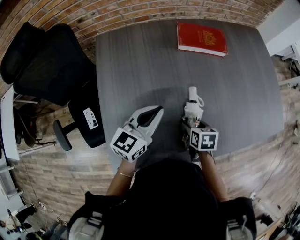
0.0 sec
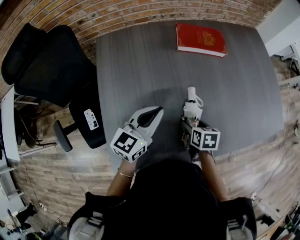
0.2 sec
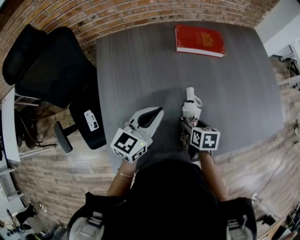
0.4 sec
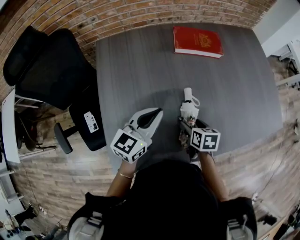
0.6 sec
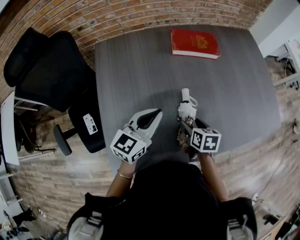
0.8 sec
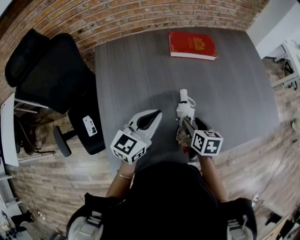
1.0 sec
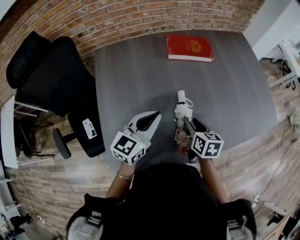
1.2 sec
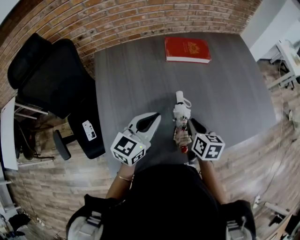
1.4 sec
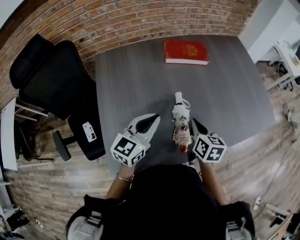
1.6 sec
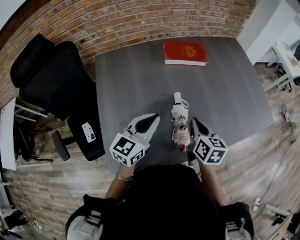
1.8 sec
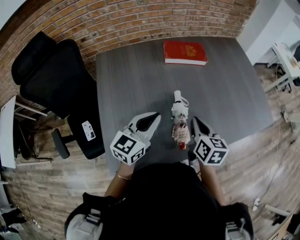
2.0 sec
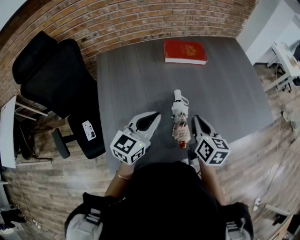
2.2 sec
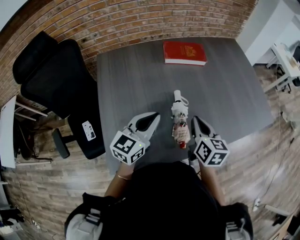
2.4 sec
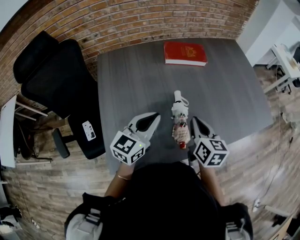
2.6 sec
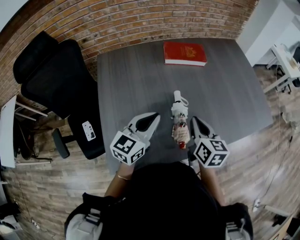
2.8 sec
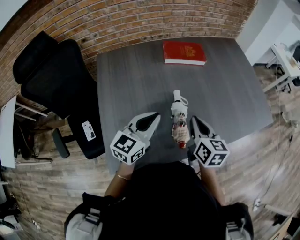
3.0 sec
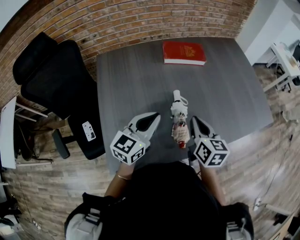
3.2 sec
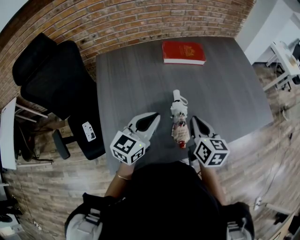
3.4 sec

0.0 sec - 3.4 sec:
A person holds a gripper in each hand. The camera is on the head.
0.0 sec - 1.6 sec: The right gripper shifts roughly 15 cm upward, rotates some 30 degrees, and closes its fingers. The left gripper moves about 5 cm.
1.6 sec - 3.4 sec: The right gripper heads upward, covering about 5 cm.

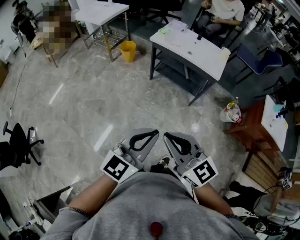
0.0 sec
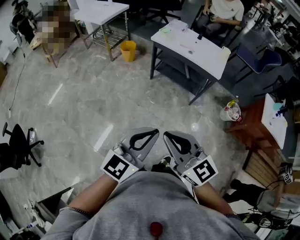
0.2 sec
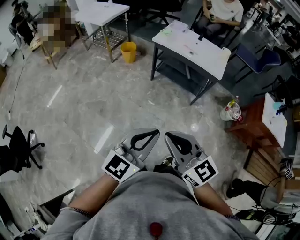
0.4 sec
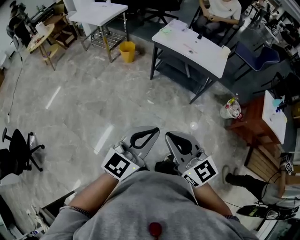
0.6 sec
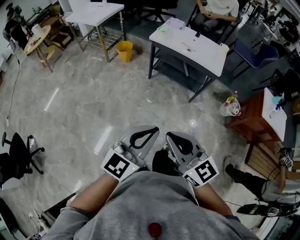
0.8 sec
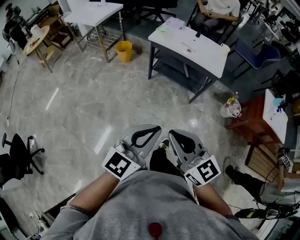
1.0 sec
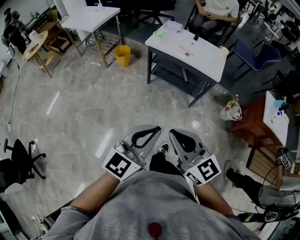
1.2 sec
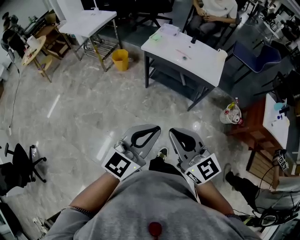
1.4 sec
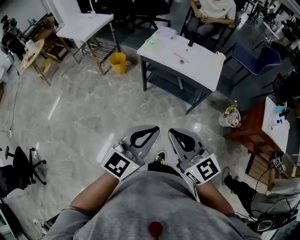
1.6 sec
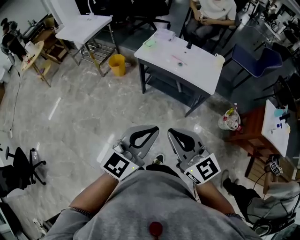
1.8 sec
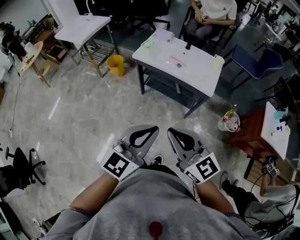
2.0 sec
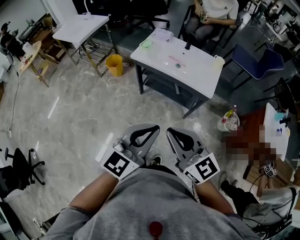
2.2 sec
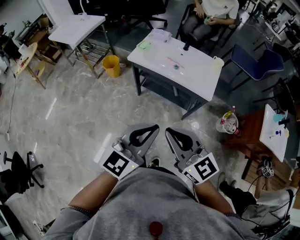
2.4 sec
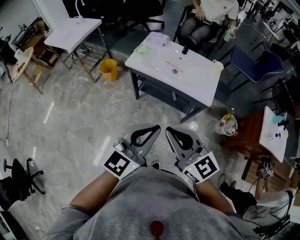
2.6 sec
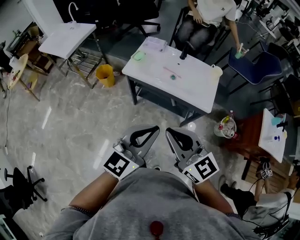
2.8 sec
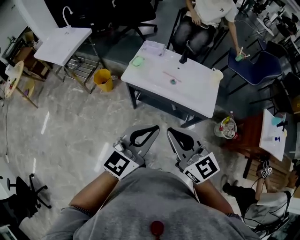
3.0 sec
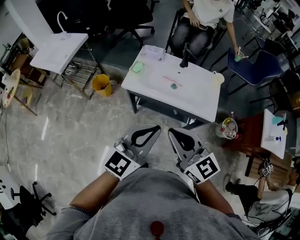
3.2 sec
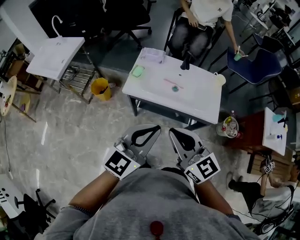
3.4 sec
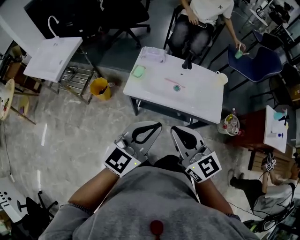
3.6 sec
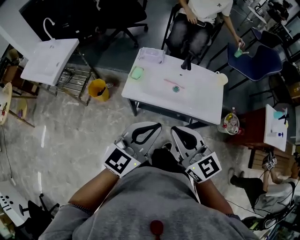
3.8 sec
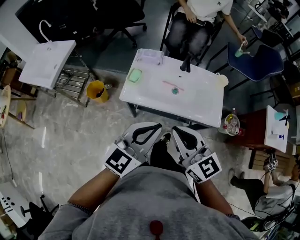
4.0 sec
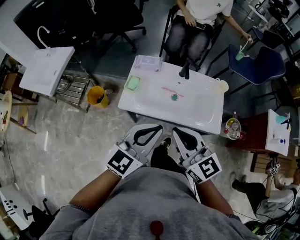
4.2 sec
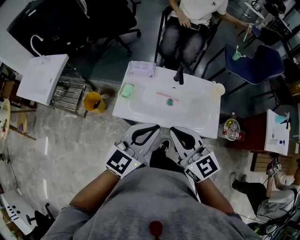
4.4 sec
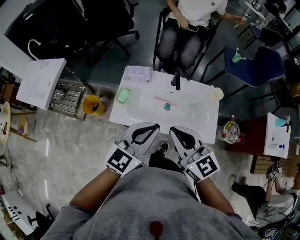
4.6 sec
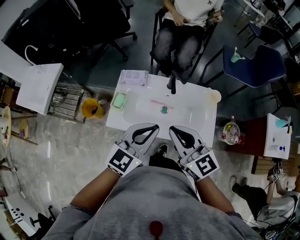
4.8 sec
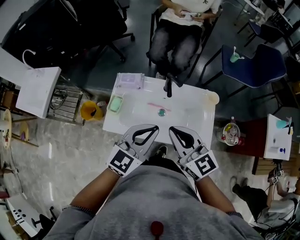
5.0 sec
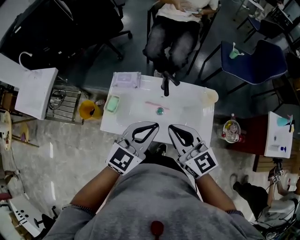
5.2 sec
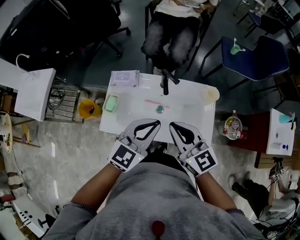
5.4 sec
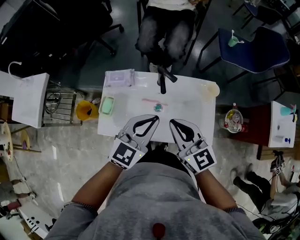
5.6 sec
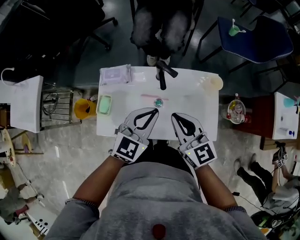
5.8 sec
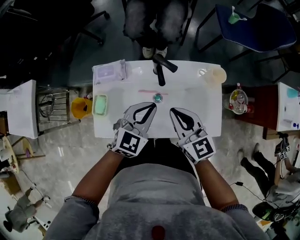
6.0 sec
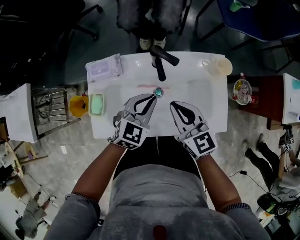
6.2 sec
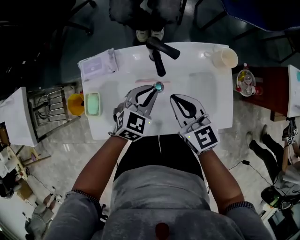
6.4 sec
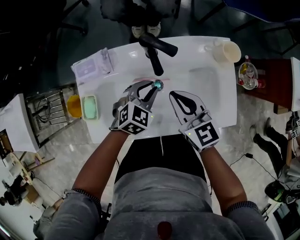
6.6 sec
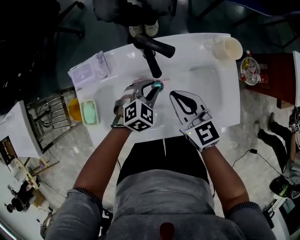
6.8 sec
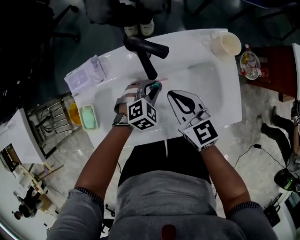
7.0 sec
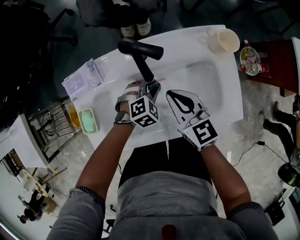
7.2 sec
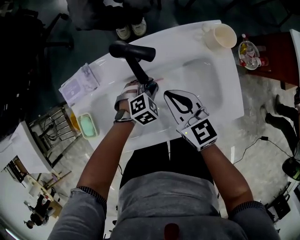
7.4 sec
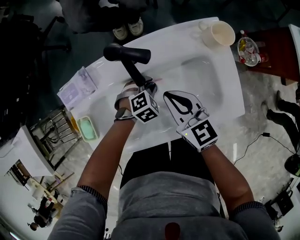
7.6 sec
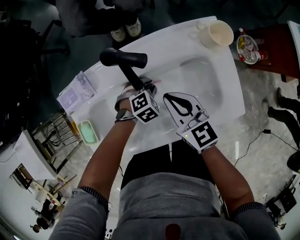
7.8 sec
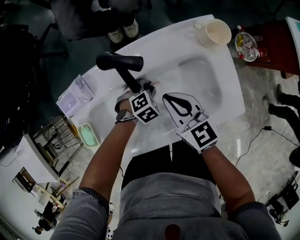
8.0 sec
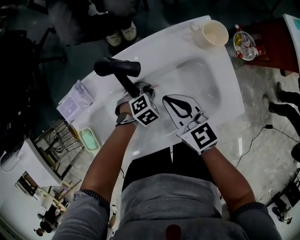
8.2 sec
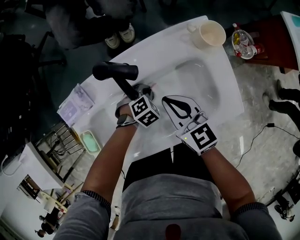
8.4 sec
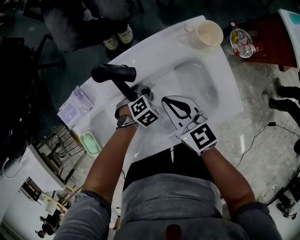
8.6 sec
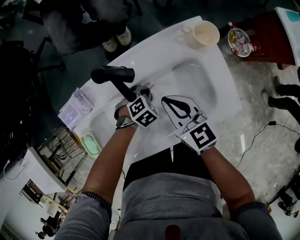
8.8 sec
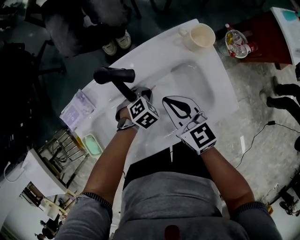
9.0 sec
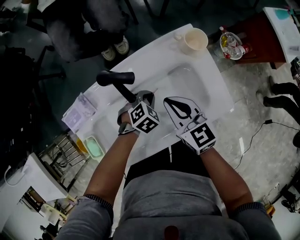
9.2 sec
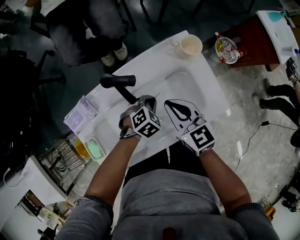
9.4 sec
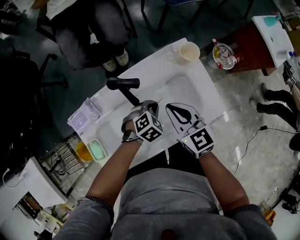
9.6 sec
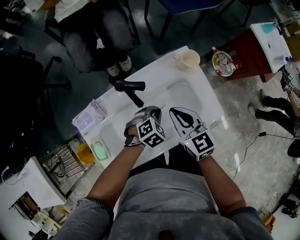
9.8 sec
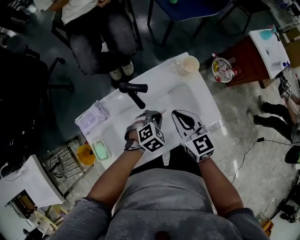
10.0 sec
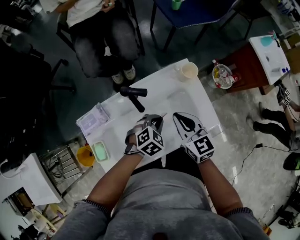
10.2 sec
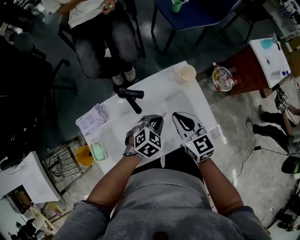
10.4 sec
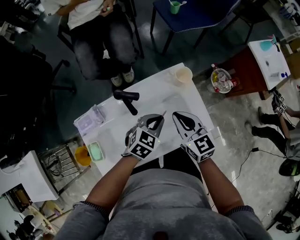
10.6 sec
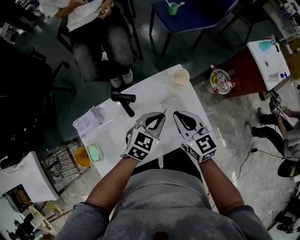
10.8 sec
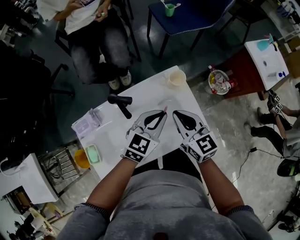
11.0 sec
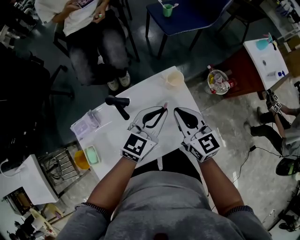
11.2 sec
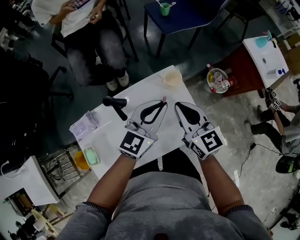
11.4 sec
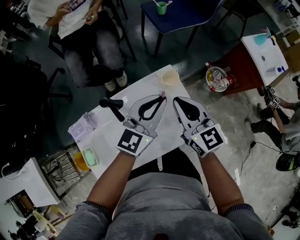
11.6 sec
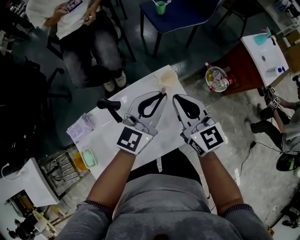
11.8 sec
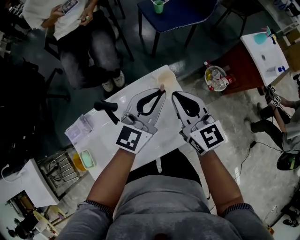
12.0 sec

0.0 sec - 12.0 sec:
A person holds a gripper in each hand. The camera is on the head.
0.0 sec - 1.6 sec: Both grippers move forward, some 15 cm.
1.6 sec - 3.0 sec: The two grippers go about 30 cm forward.
3.0 sec - 4.4 sec: The two grippers go approximately 25 cm forward.
4.4 sec - 6.0 sec: The grippers both shift forward, downward and to the right by about 30 cm. The left gripper rotates some 30 degrees.
6.0 sec - 7.6 sec: The right gripper shifts some 15 cm downward; the left gripper moves downward, about 30 cm, tilts its fingers about 40 degrees downward, and opens up.
7.6 sec - 9.0 sec: The left gripper closes up.
9.0 sec - 10.4 sec: The right gripper moves upward, some 10 cm. Meanwhile the left gripper goes about 20 cm upward, and rotates approximately 20 degrees.
10.4 sec - 12.0 sec: The left gripper is displaced upward and forward by some 25 cm, and tips its fingers upward by roughly 50 degrees, while the right gripper shifts approximately 15 cm upward, forward and to the right.

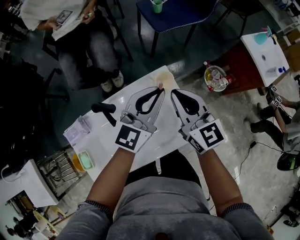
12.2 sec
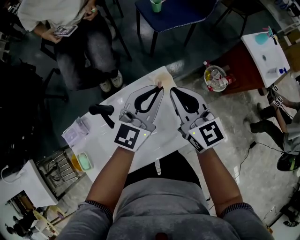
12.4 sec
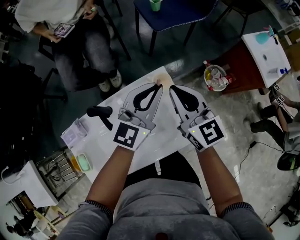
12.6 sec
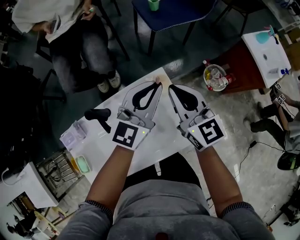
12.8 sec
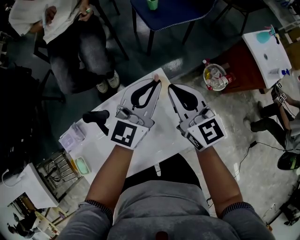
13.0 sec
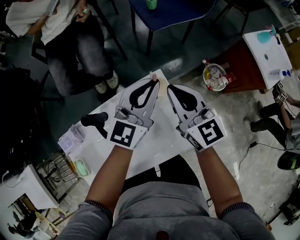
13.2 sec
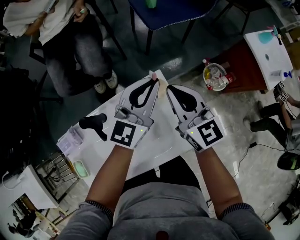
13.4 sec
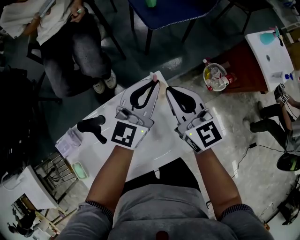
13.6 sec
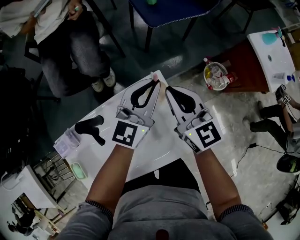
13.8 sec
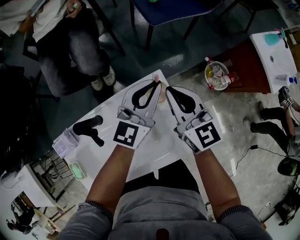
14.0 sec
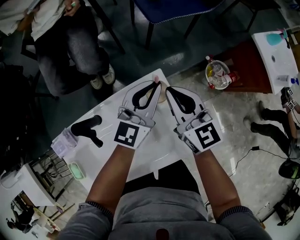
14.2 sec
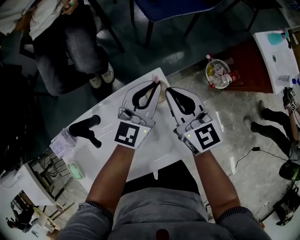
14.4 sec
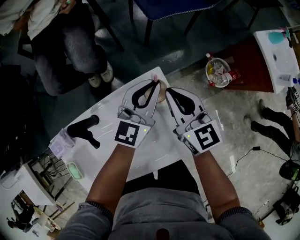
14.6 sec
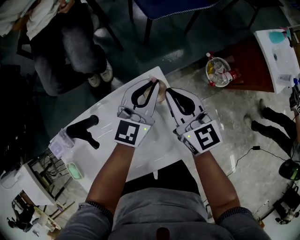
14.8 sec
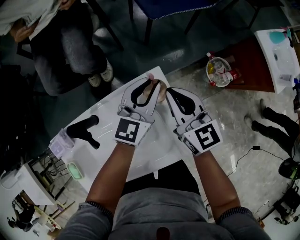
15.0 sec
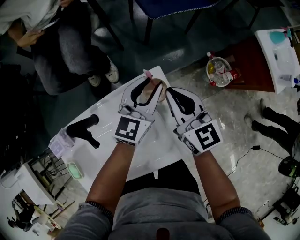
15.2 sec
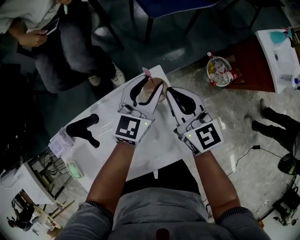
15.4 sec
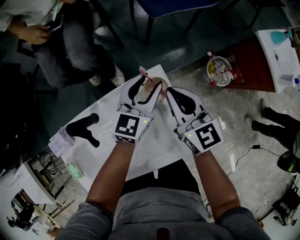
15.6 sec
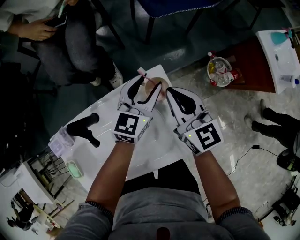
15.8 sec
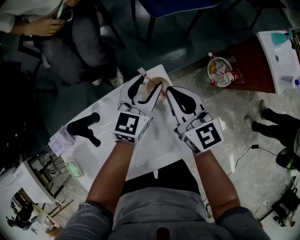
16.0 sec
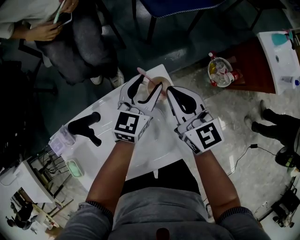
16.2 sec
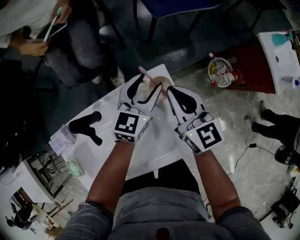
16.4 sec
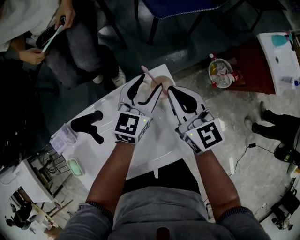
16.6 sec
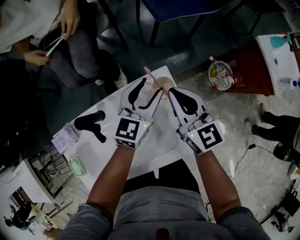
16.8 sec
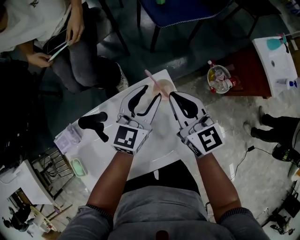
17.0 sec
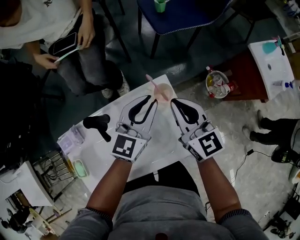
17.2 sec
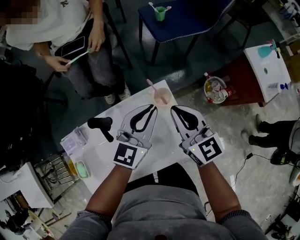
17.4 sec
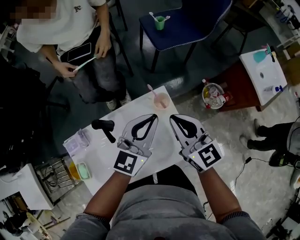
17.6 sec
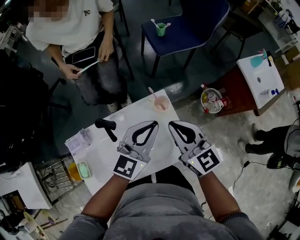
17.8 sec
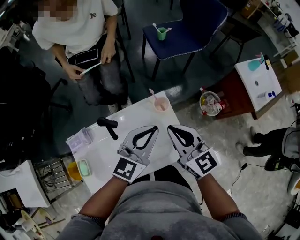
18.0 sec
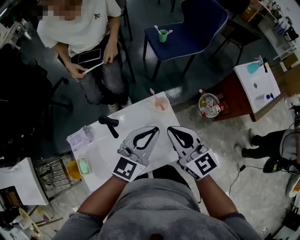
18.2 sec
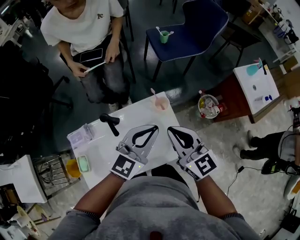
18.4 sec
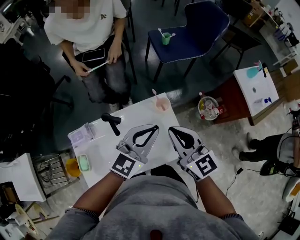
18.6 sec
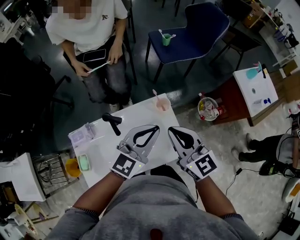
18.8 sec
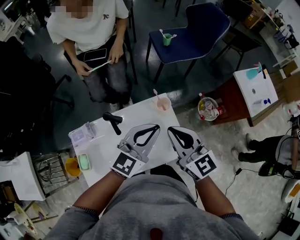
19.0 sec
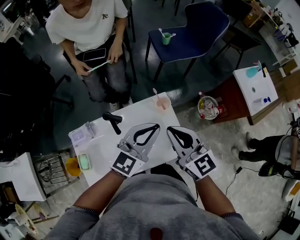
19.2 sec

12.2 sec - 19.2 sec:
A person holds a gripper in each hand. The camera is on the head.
12.2 sec - 13.6 sec: Both grippers move forward, approximately 10 cm.
13.6 sec - 15.0 sec: Both grippers move downward, some 10 cm.
15.0 sec - 16.4 sec: The left gripper opens up.
16.4 sec - 17.8 sec: Both grippers move upward and backward, roughly 20 cm. The left gripper closes up.
17.8 sec - 19.2 sec: The left gripper shifts by some 5 cm, while the right gripper travels upward by some 5 cm.

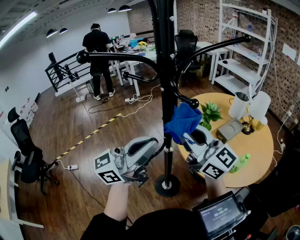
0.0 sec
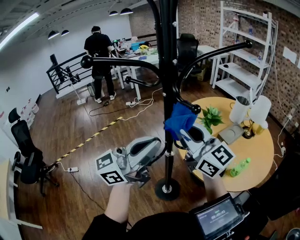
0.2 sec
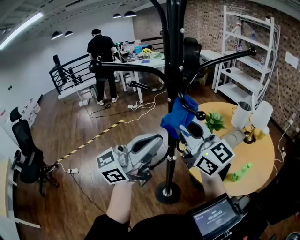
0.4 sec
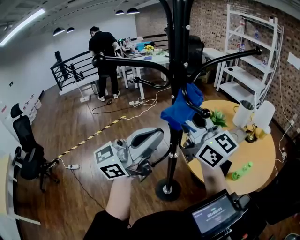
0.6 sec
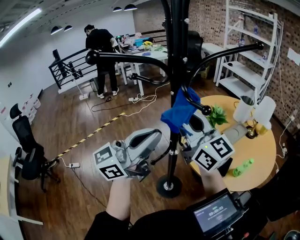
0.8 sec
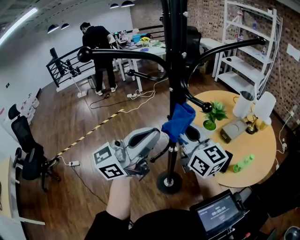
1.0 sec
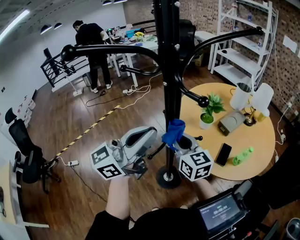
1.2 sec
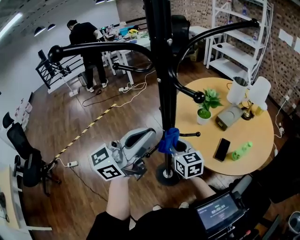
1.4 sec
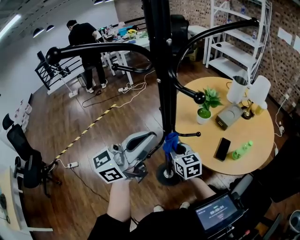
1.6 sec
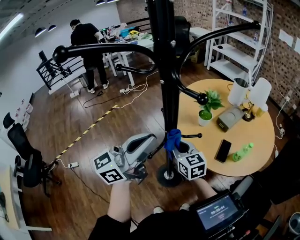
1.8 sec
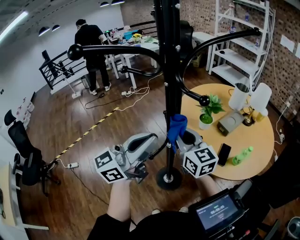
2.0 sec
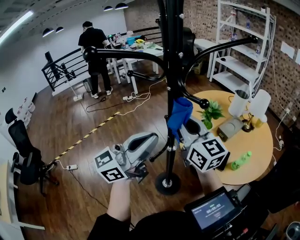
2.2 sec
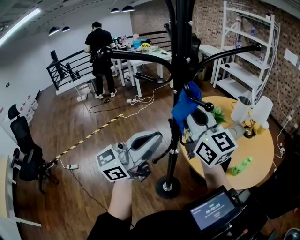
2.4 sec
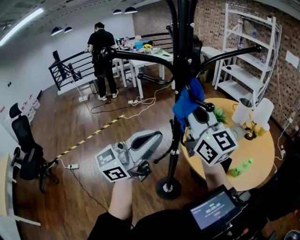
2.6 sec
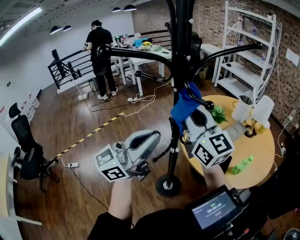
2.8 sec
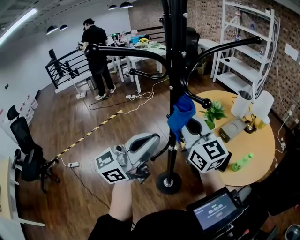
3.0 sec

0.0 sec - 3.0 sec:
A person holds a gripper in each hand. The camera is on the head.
0.0 sec - 1.6 sec: The right gripper moves downward, approximately 30 cm, and tilts its fingers about 40 degrees downward.
1.6 sec - 3.0 sec: The right gripper travels upward by some 25 cm, and points its fingers roughly 30 degrees further upward.
